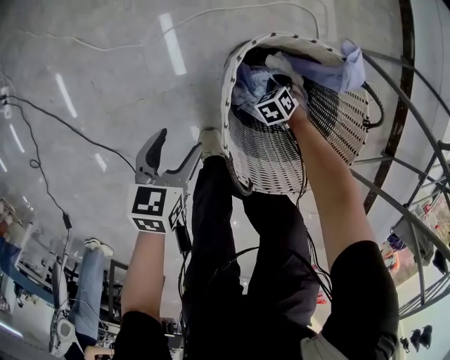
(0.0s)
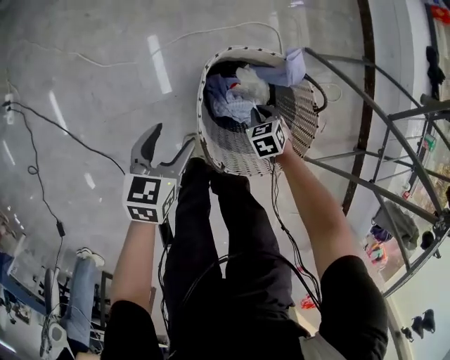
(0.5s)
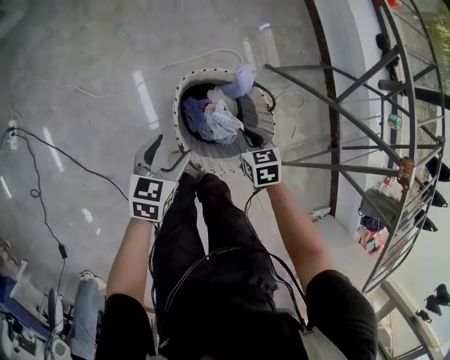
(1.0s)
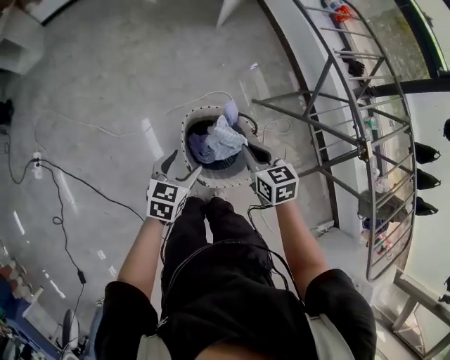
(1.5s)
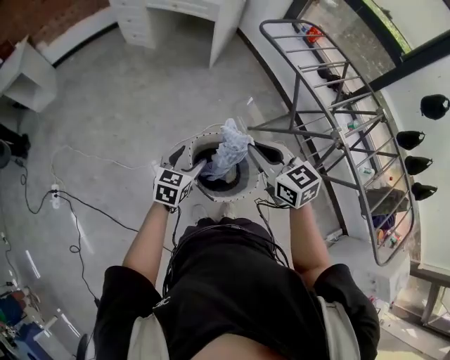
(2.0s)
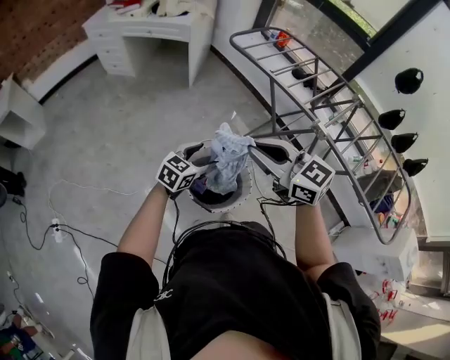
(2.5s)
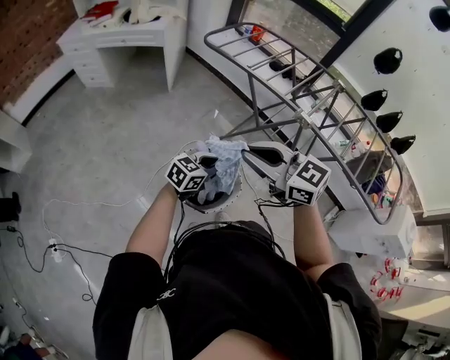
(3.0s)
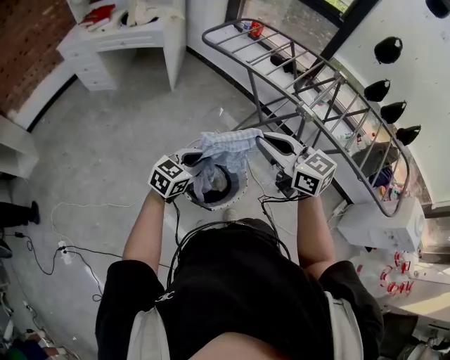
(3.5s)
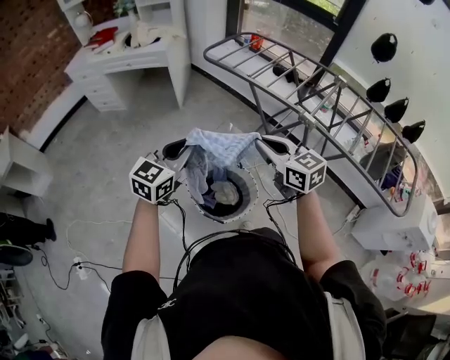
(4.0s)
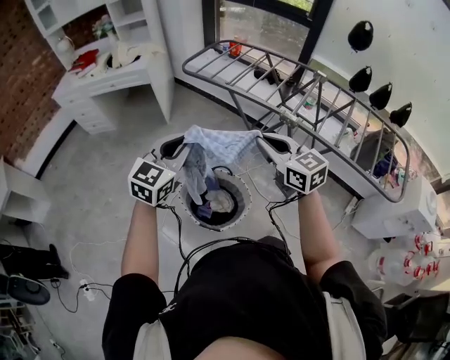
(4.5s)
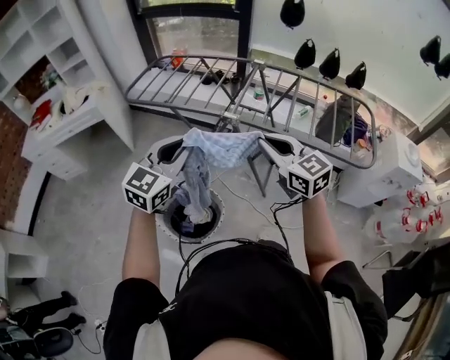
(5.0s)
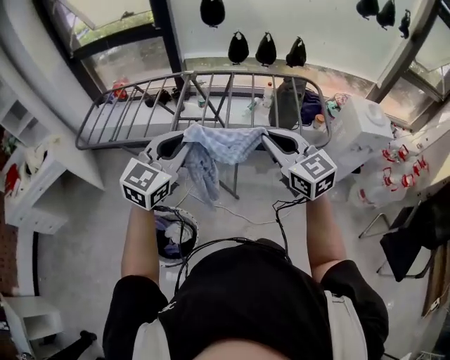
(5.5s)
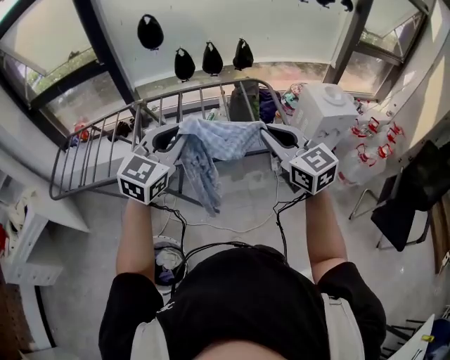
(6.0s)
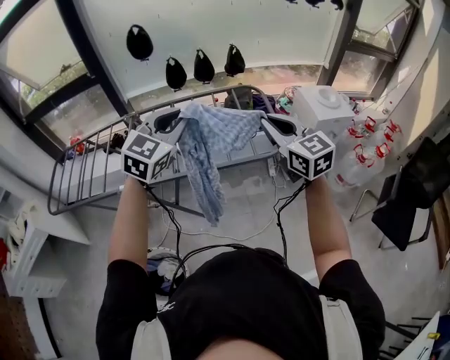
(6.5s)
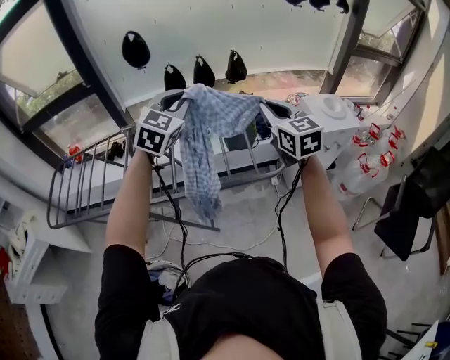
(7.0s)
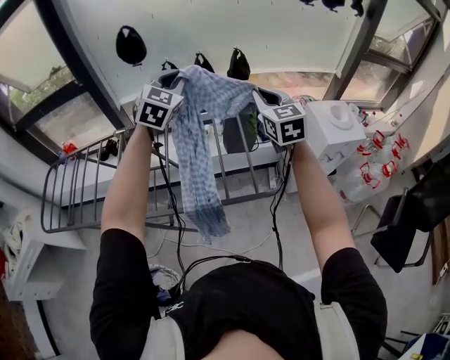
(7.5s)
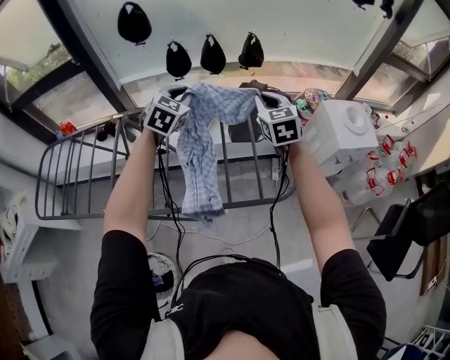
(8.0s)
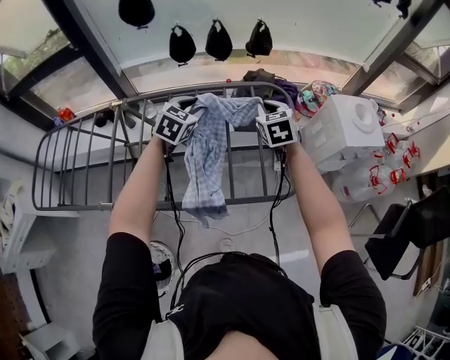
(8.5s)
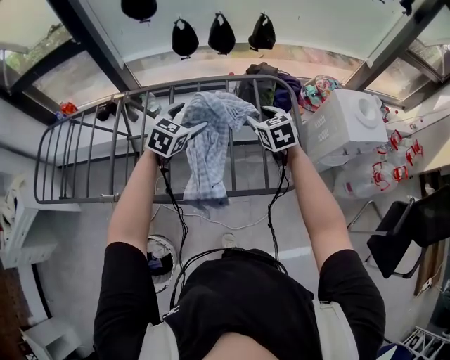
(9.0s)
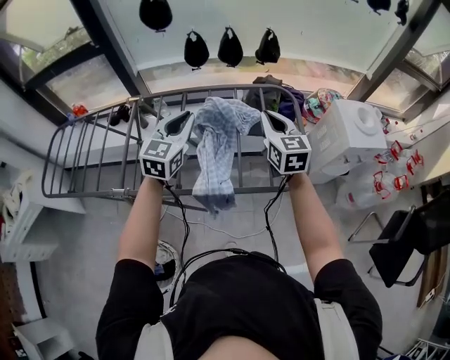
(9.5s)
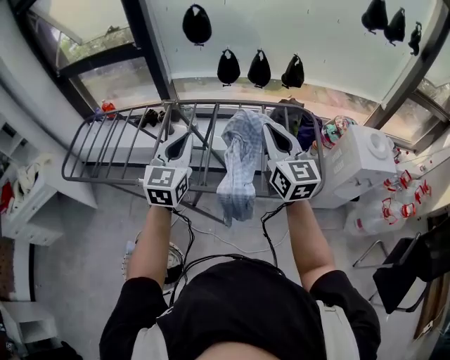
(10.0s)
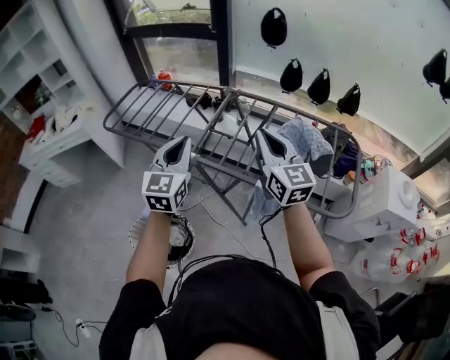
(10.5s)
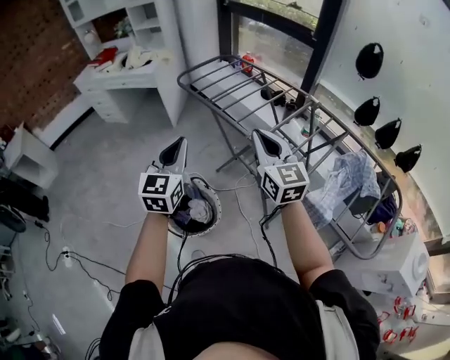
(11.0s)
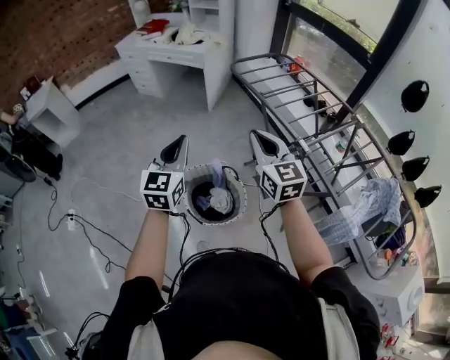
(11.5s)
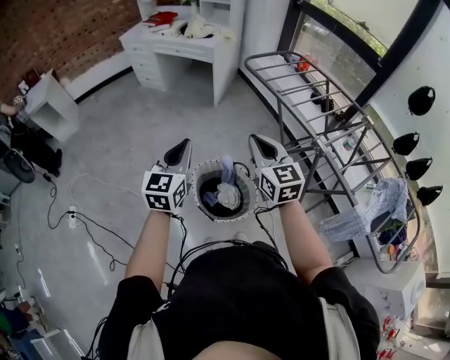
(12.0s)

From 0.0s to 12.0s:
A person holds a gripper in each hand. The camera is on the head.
From 0.0s to 2.0s: The left gripper goes about 50 cm upward, and changes its angle by approximately 40 degrees; the right gripper heads upward, covering approximately 90 cm, and tilts its fingers approximately 60 degrees upward.
From 2.0s to 4.0s: The right gripper heads to the right and upward, covering about 10 cm, and rotates roughly 20 degrees, while the left gripper travels upward by about 20 cm, changes its angle by some 30 degrees, and closes its fingers.
From 4.0s to 6.0s: The two grippers travel together, about 60 cm. The left gripper turns by roughly 50 degrees, while the right gripper changes its angle by approximately 60 degrees.
From 6.0s to 8.0s: The two grippers travel together, forward, some 40 cm. The left gripper changes its angle by roughly 20 degrees; the right gripper changes its angle by about 20 degrees.
From 8.0s to 10.0s: The left gripper heads backward and to the left, covering some 30 cm, turns by approximately 30 degrees, and opens and closes again, while the right gripper is displaced backward, to the left and upward by about 25 cm, swivels roughly 30 degrees, and opens and closes again.
From 10.0s to 12.0s: The two grippers travel together, roughly 70 cm. The left gripper rotates approximately 60 degrees; the right gripper swivels some 60 degrees.

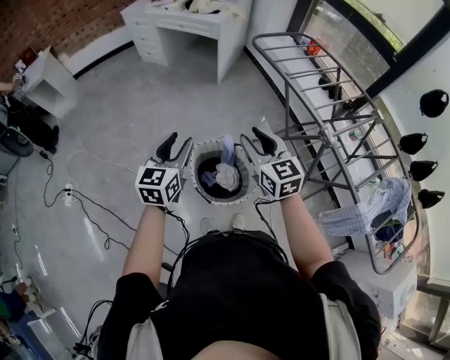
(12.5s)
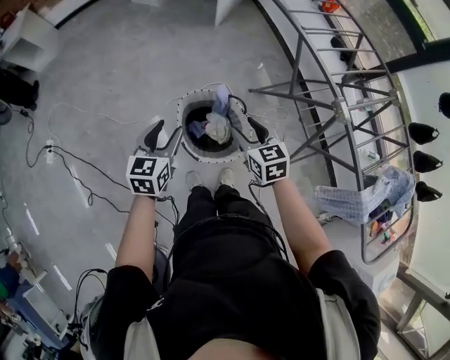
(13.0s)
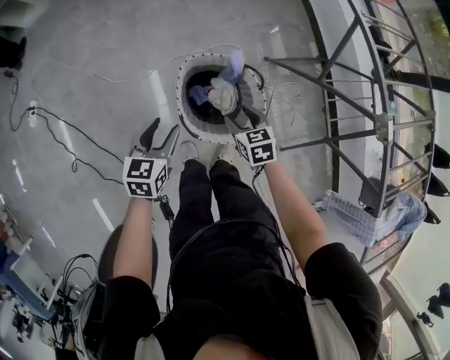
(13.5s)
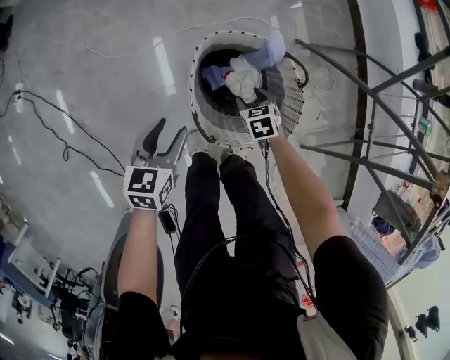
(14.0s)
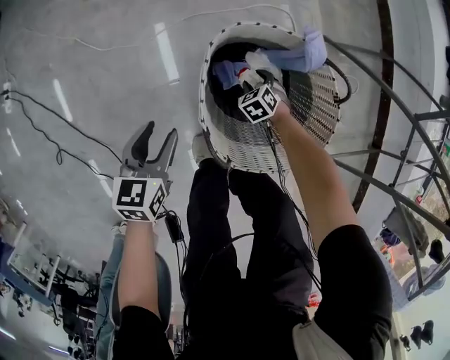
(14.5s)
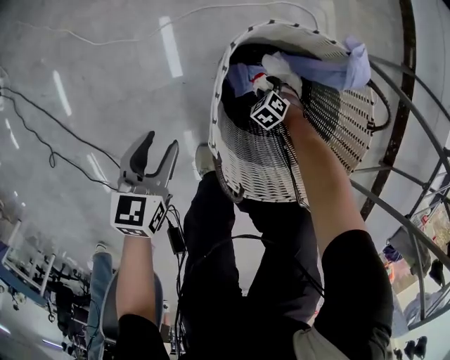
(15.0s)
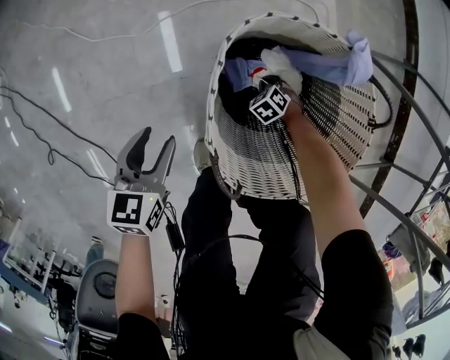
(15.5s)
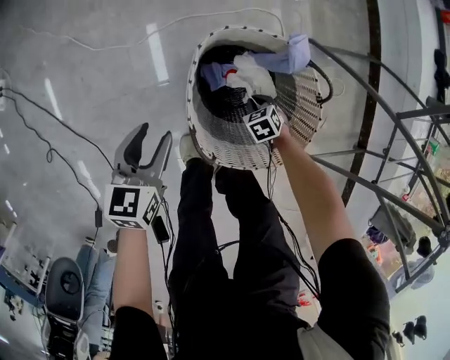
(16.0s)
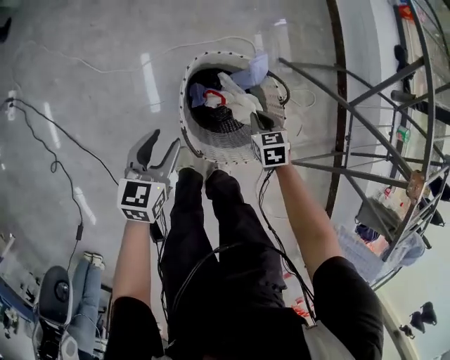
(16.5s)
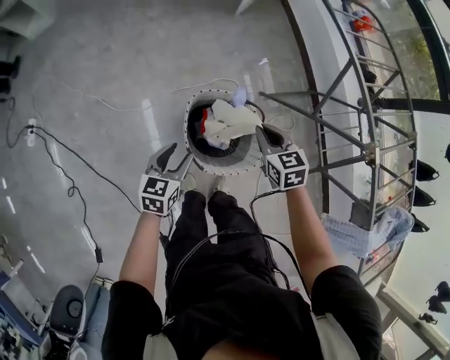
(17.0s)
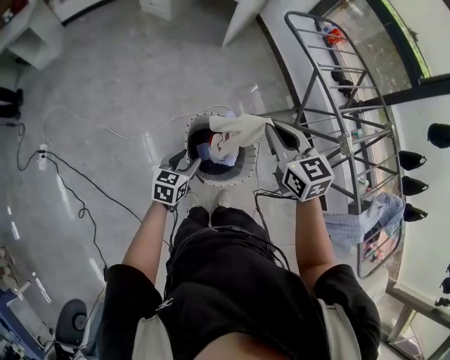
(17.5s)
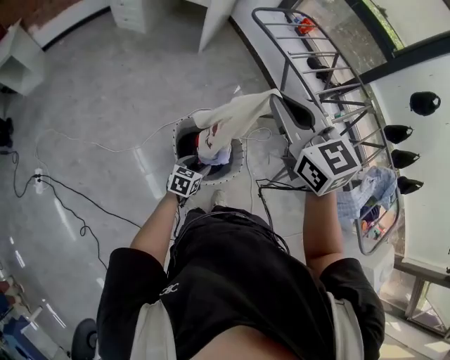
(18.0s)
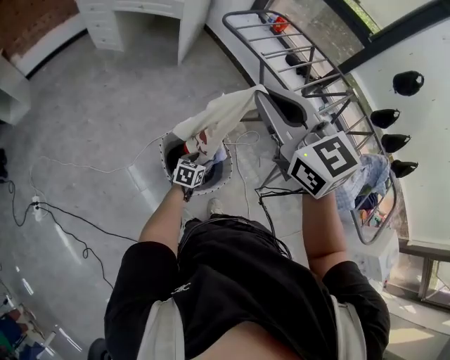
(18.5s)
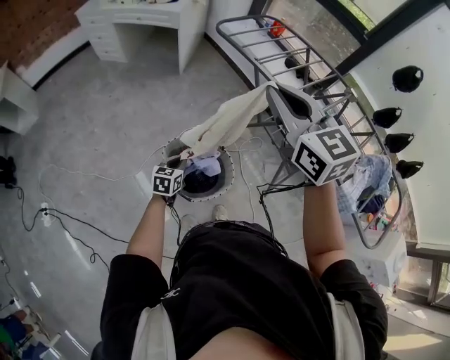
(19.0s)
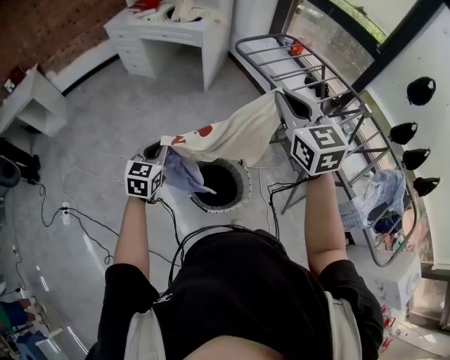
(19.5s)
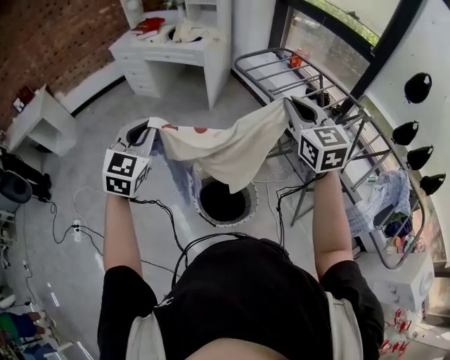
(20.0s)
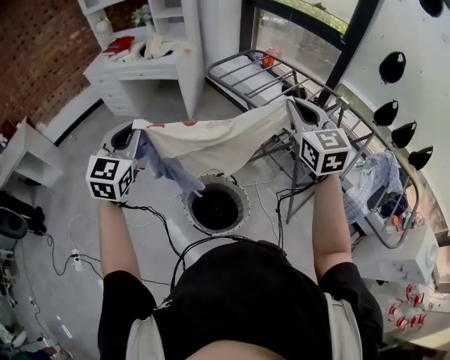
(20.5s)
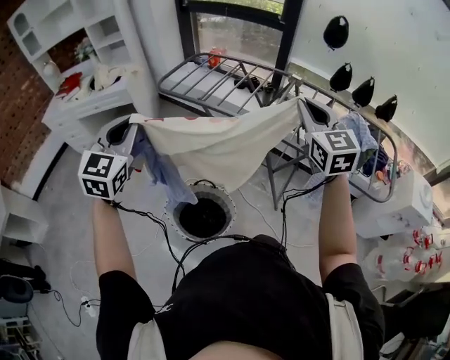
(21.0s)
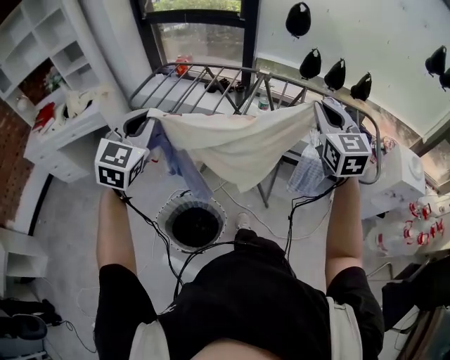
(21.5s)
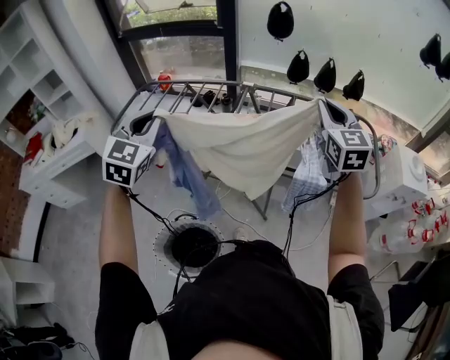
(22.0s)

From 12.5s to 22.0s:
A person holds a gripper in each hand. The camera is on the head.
From 12.5s to 14.5s: Both grippers move downward, roughly 70 cm. The right gripper points its fingers approximately 60 degrees further downward, and opens up. Meanwhile the left gripper turns by approximately 40 degrees.
From 14.5s to 16.5s: The left gripper travels upward by approximately 15 cm, while the right gripper moves upward, approximately 25 cm, rotates approximately 30 degrees, and closes its fingers.
From 16.5s to 18.0s: The left gripper shifts about 20 cm to the right and upward, and changes its angle by approximately 30 degrees. Meanwhile the right gripper travels upward by roughly 70 cm, and tilts its fingers about 40 degrees upward.
From 18.0s to 20.0s: The right gripper moves to the right and forward, about 20 cm. Meanwhile the left gripper goes about 50 cm upward, rotates about 50 degrees, and closes its fingers.
From 20.0s to 22.0s: The two grippers travel together, some 40 cm. The left gripper changes its angle by approximately 40 degrees, while the right gripper rotates about 50 degrees.

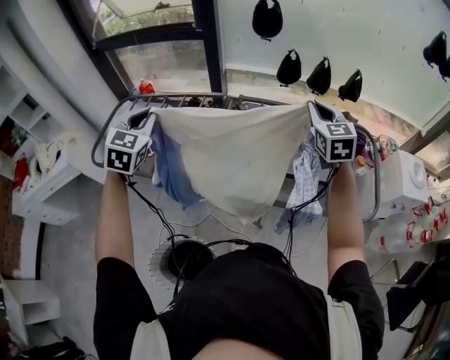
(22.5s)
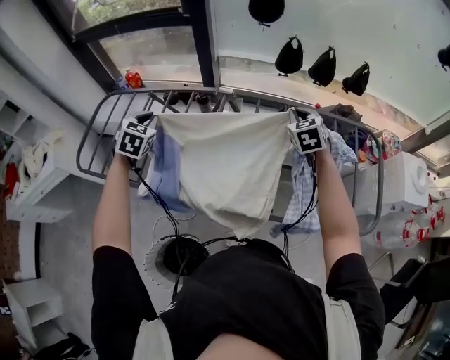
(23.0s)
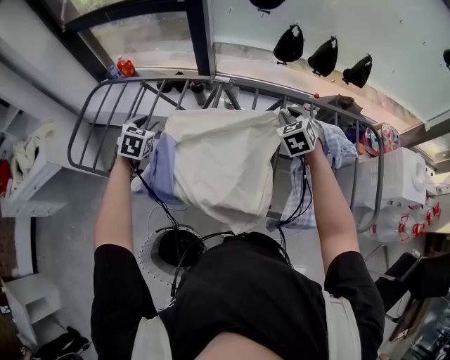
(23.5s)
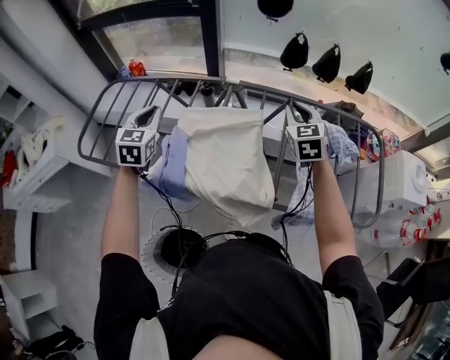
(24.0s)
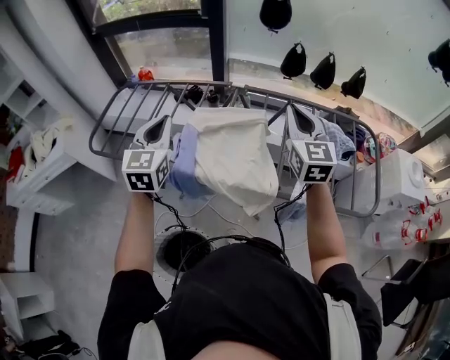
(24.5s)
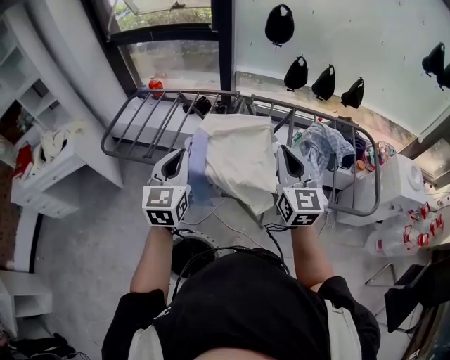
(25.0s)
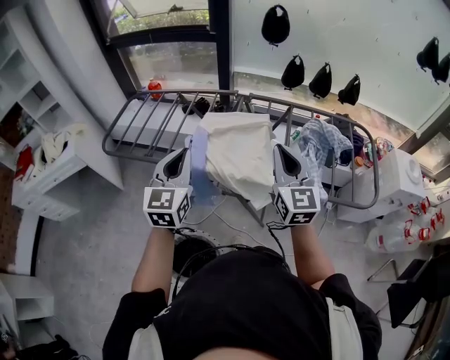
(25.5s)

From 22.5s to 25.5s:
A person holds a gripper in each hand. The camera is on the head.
From 22.5s to 24.0s: The left gripper shifts some 15 cm downward and forward, and opens, then closes again; the right gripper moves downward, forward and to the left, about 15 cm.
From 24.0s to 25.5s: The left gripper shifts some 25 cm backward. Meanwhile the right gripper is displaced backward, to the left and upward by approximately 30 cm, and changes its angle by about 30 degrees.

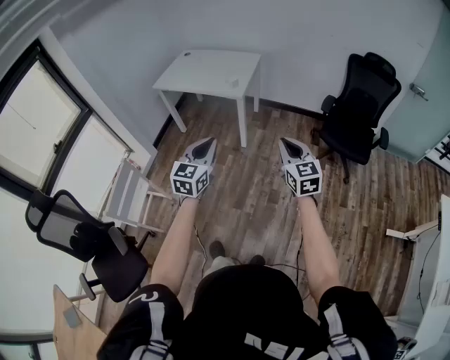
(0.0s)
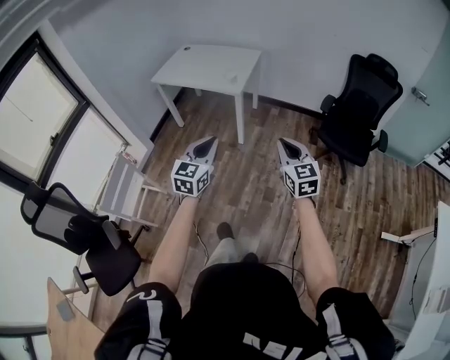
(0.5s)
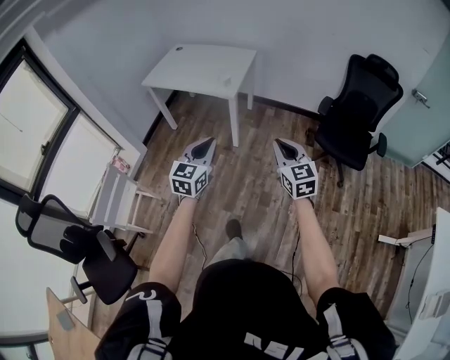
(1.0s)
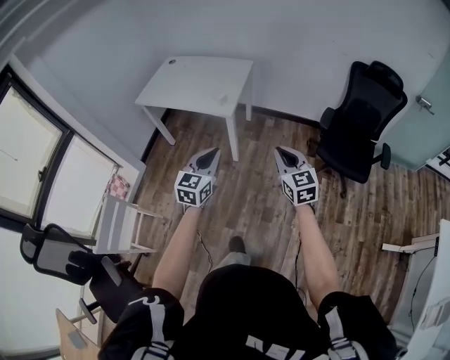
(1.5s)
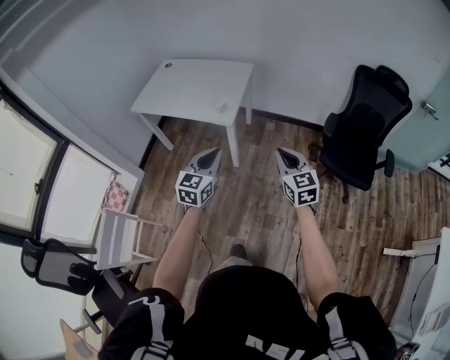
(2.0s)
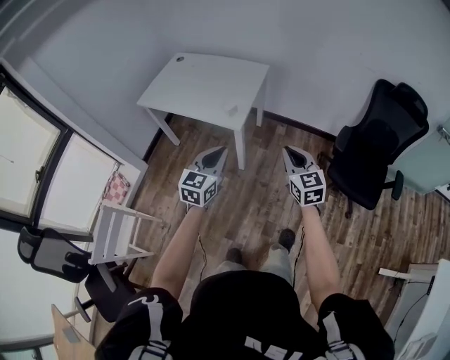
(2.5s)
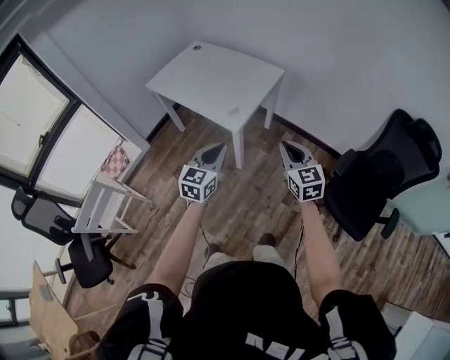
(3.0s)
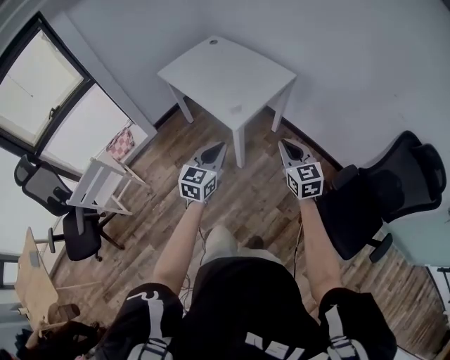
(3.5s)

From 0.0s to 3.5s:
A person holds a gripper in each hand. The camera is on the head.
From 0.0s to 2.0s: The grippers both shift forward by approximately 30 cm.
From 2.0s to 3.5s: The right gripper shifts by approximately 25 cm, and changes its angle by about 30 degrees; the left gripper shifts by approximately 20 cm, and turns by some 30 degrees.
